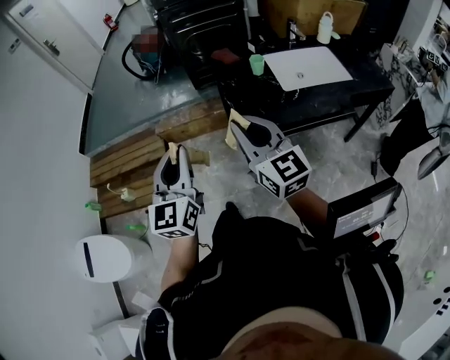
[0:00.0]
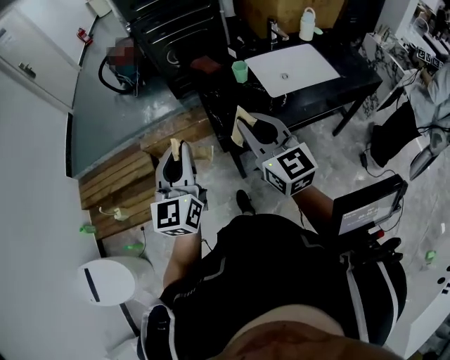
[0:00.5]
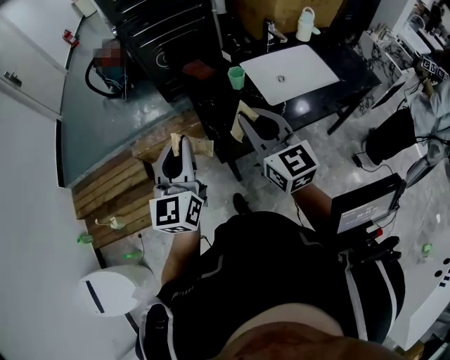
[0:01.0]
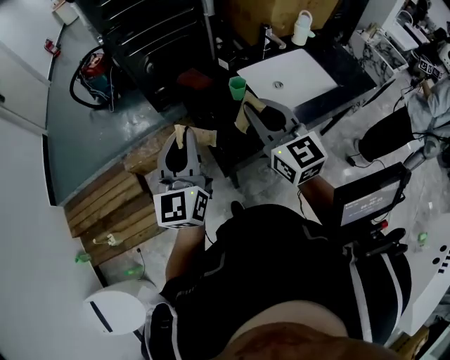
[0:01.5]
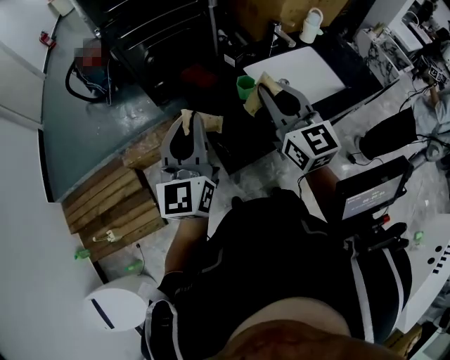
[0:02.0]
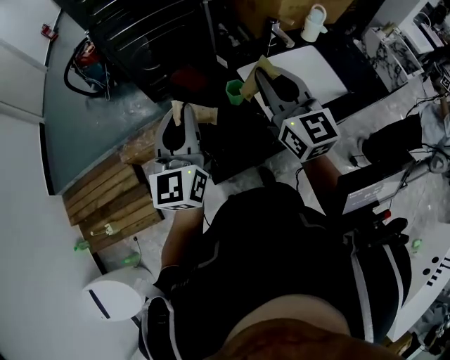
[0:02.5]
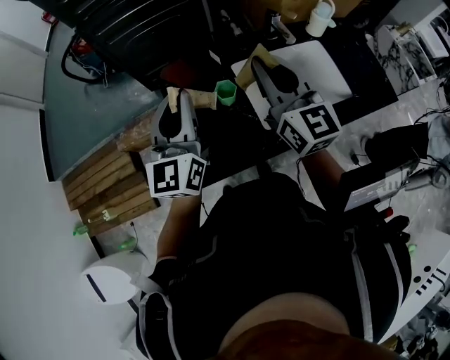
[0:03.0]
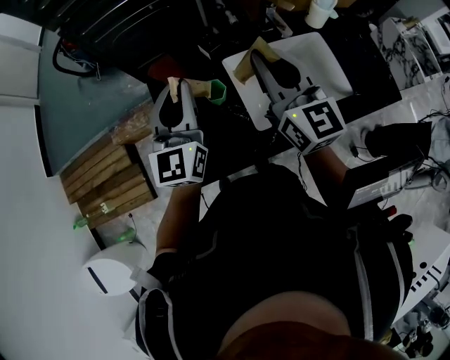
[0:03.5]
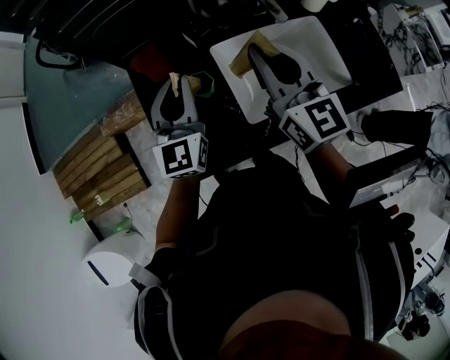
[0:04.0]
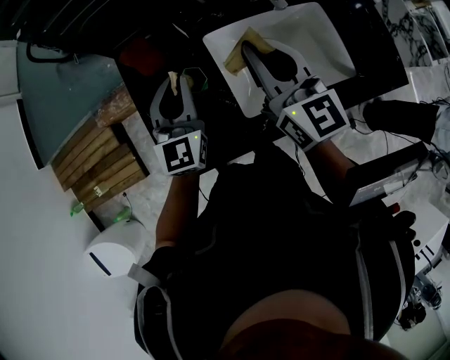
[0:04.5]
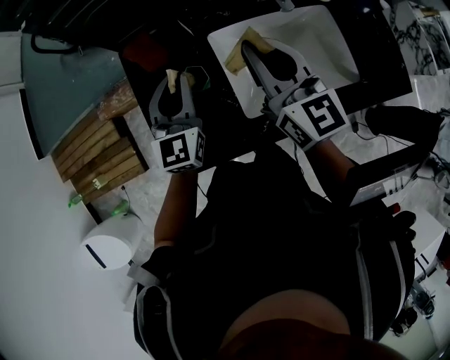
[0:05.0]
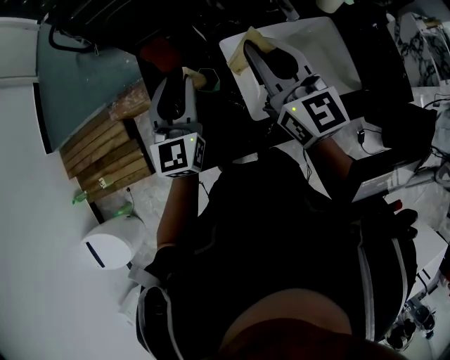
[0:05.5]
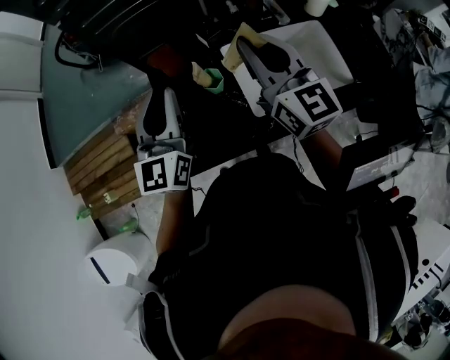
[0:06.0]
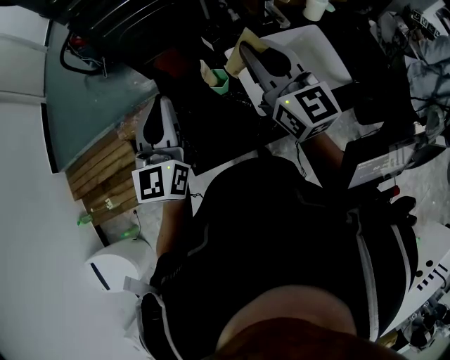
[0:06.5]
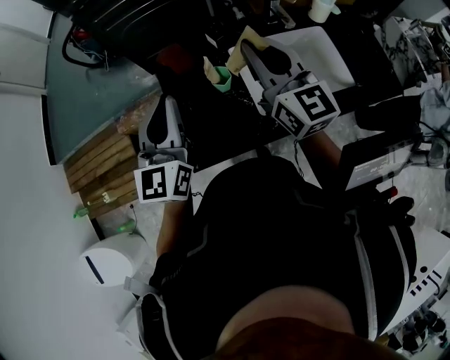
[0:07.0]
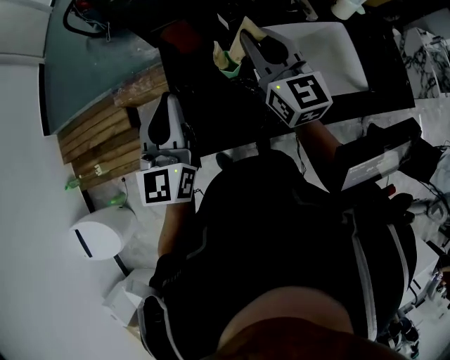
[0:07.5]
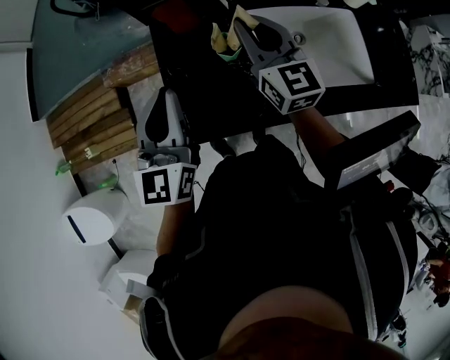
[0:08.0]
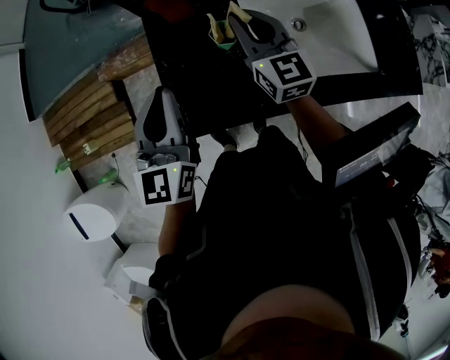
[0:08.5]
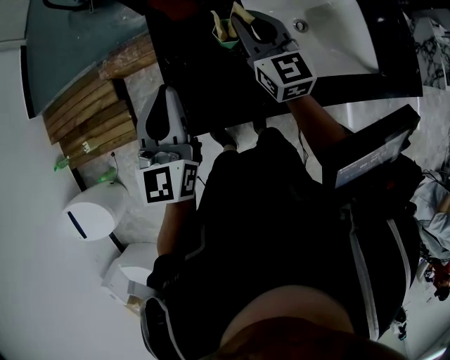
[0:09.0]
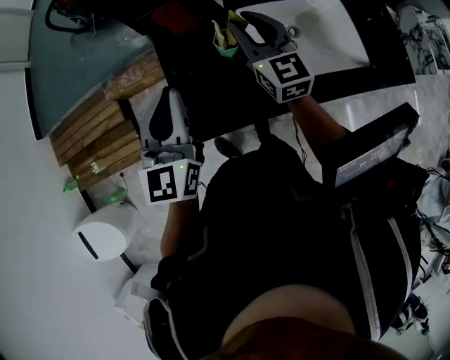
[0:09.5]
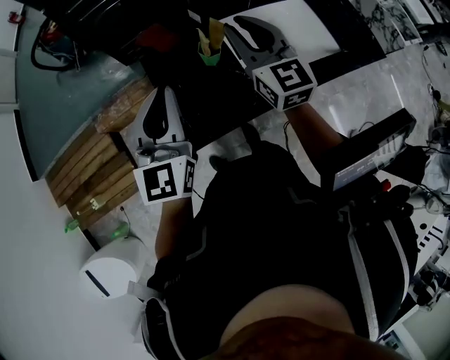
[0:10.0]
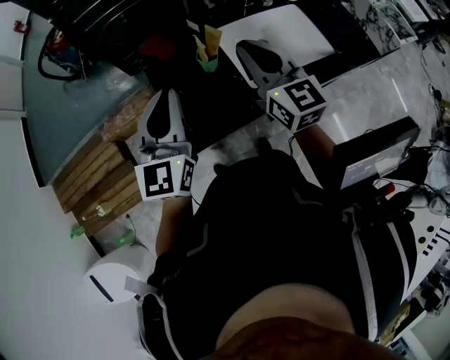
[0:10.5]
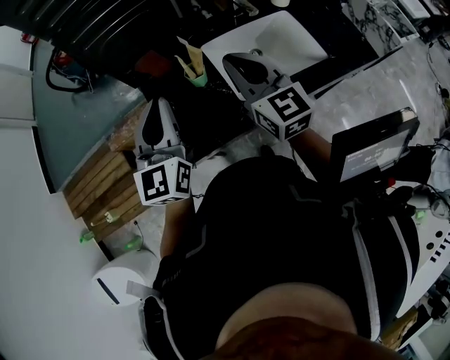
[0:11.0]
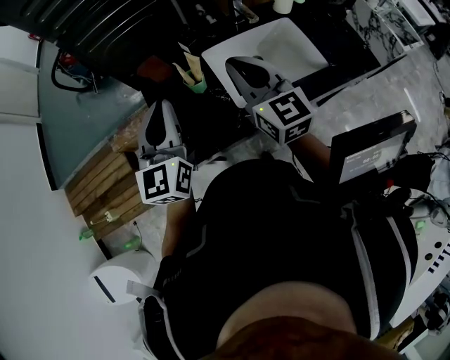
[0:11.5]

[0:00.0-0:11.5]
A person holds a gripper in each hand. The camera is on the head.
0:00.0 to 0:02.0: The grippers both shift forward by roughly 30 cm. The right gripper swivels approximately 20 degrees.
0:02.0 to 0:04.0: The left gripper travels forward, to the right and downward by approximately 25 cm, while the right gripper shifts roughly 20 cm to the right and forward.
0:04.0 to 0:06.0: The right gripper moves about 5 cm, while the left gripper heads upward, backward and to the left, covering about 10 cm.
0:06.0 to 0:07.5: The left gripper moves about 5 cm. The right gripper shifts by some 5 cm.
0:07.5 to 0:09.5: The right gripper travels downward by some 5 cm.
0:09.5 to 0:11.5: The right gripper moves backward, upward and to the right, some 15 cm; the left gripper travels to the right and upward by approximately 10 cm.

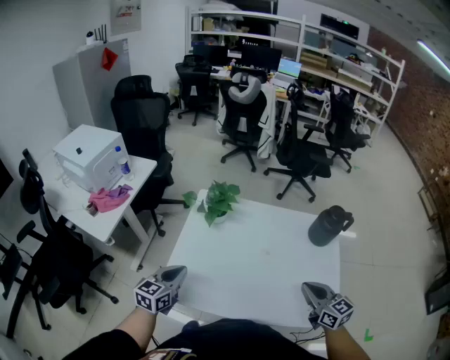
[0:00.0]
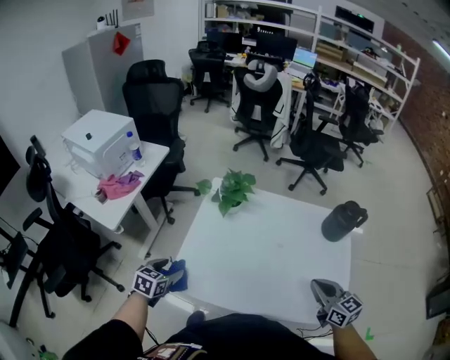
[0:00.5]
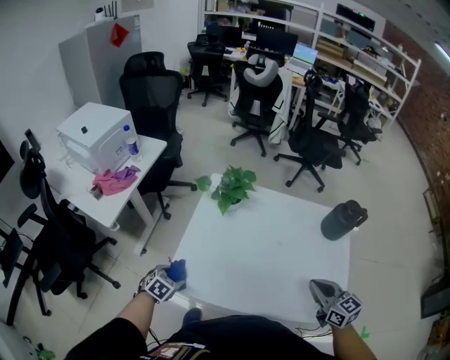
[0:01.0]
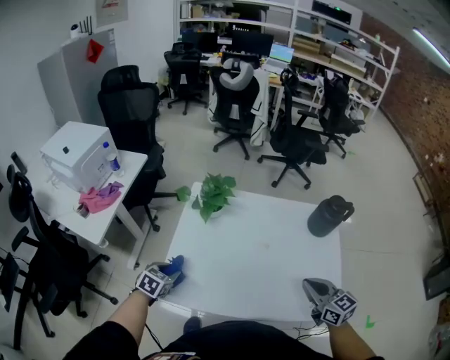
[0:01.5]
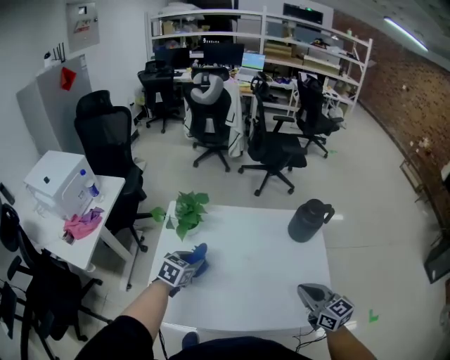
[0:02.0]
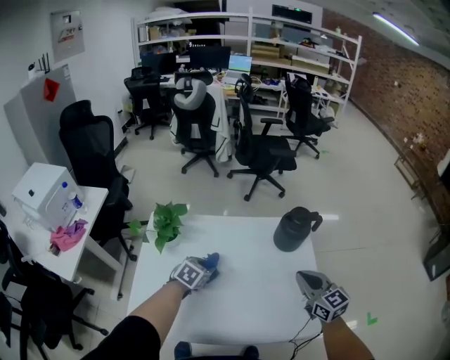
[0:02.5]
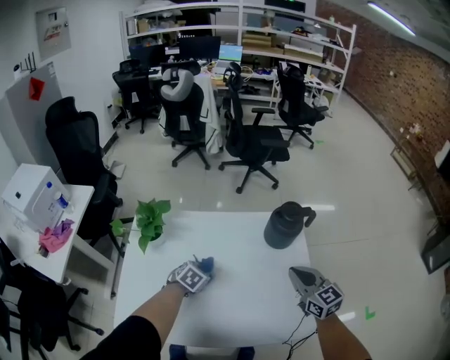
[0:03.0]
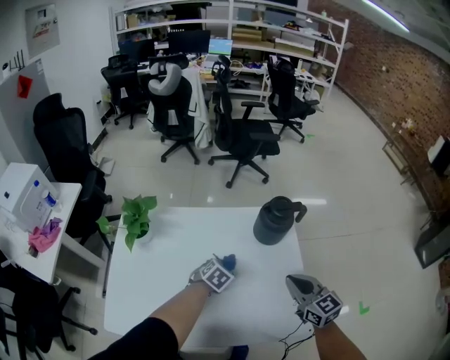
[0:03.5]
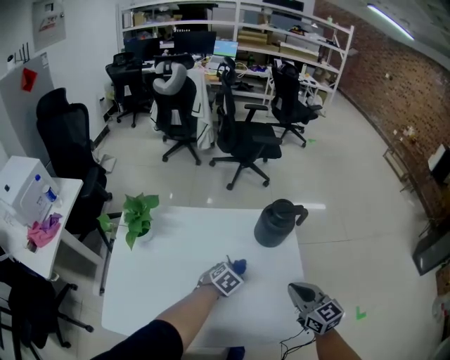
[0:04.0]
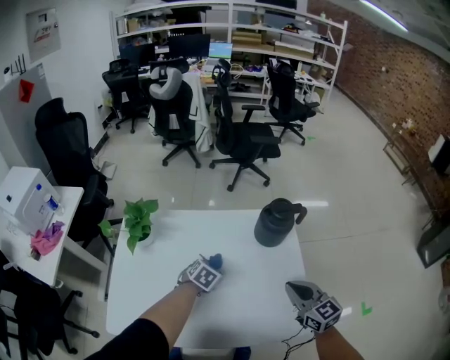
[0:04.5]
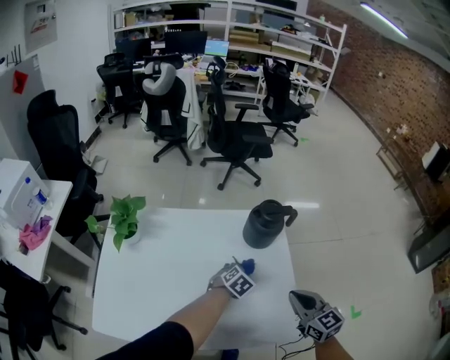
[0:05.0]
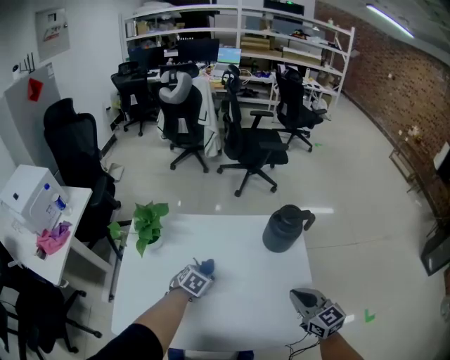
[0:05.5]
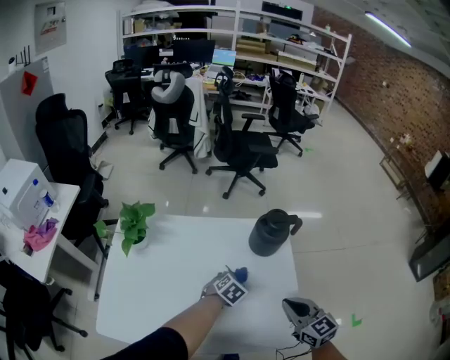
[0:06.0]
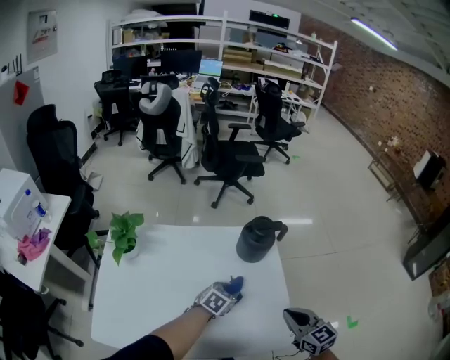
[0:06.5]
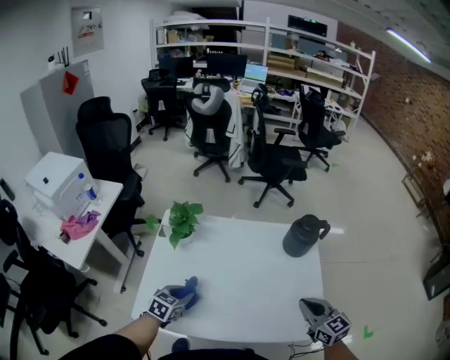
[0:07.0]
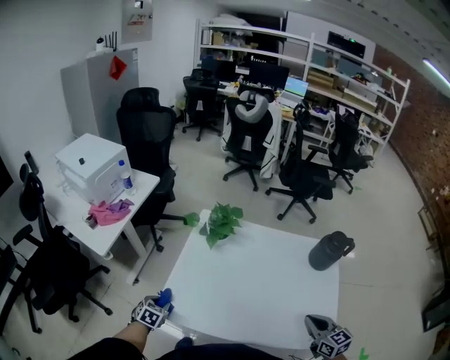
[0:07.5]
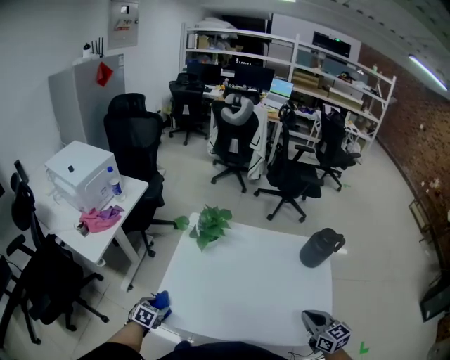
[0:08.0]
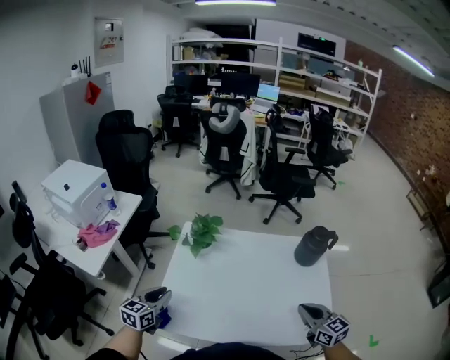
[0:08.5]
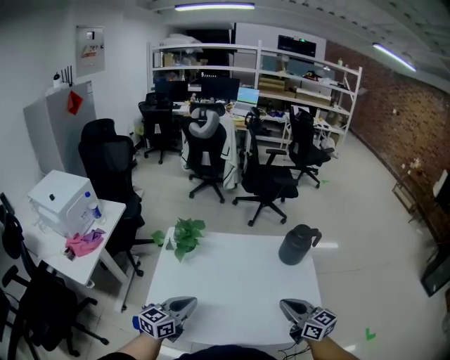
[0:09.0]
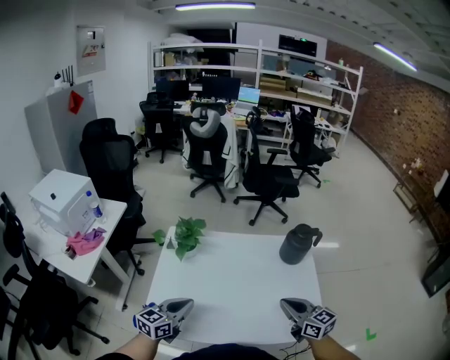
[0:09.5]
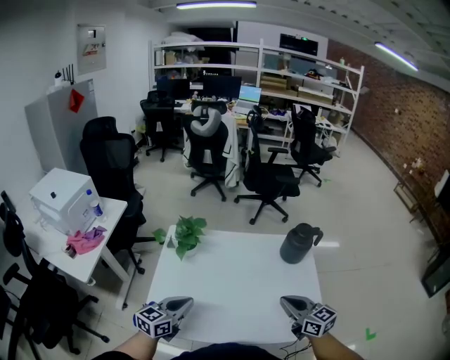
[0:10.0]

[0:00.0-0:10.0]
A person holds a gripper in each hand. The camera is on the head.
0:00.0 to 0:02.0: The left gripper moves forward and to the right, approximately 20 cm, changes its angle by approximately 30 degrees, and opens.
0:02.0 to 0:04.0: The right gripper heads to the right and forward, covering approximately 15 cm. Meanwhile the left gripper is displaced to the right by roughly 30 cm, and swivels approximately 30 degrees.
0:04.0 to 0:06.0: The left gripper swings left and right, approximately 25 cm each way, with 3 reversals.
0:06.0 to 0:08.0: The right gripper moves approximately 15 cm, while the left gripper goes upward and returns, some 10 cm each way, and changes its angle by some 40 degrees.
0:08.0 to 0:10.0: The left gripper goes some 30 cm upward and to the right, points its fingers about 40 degrees further upward, and closes up.

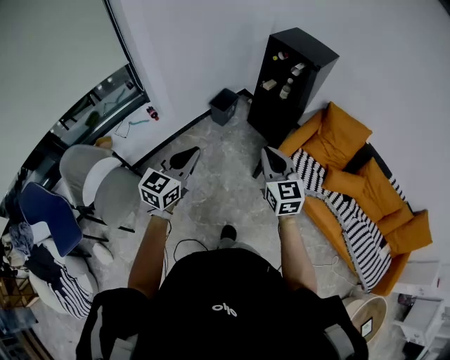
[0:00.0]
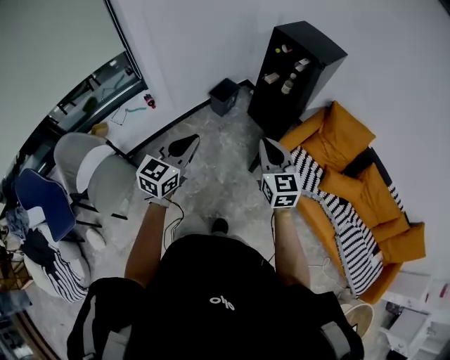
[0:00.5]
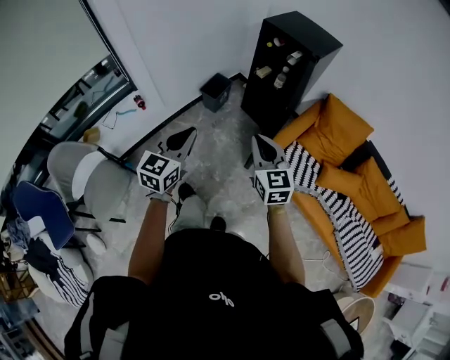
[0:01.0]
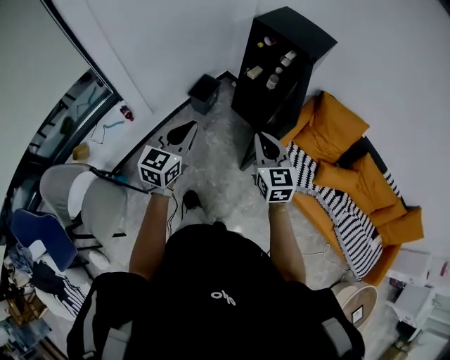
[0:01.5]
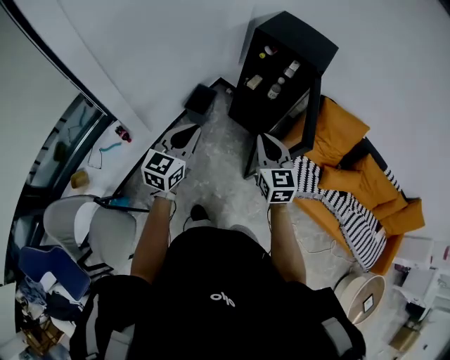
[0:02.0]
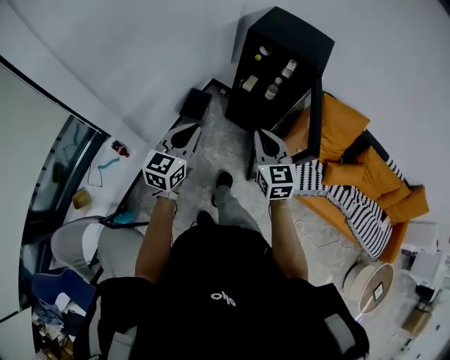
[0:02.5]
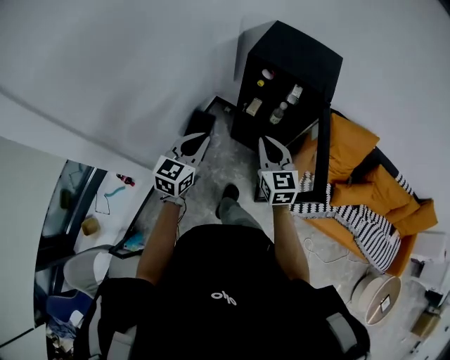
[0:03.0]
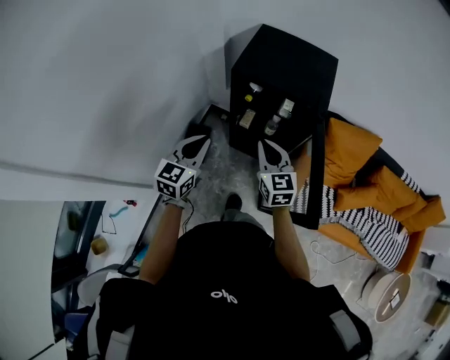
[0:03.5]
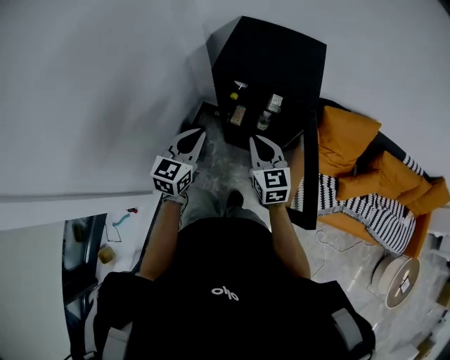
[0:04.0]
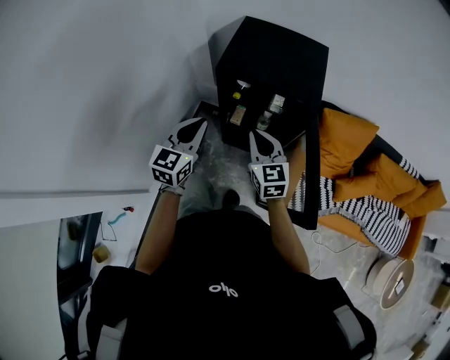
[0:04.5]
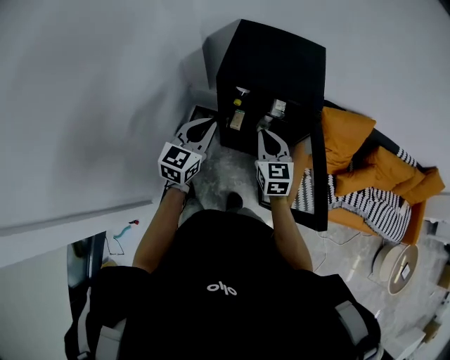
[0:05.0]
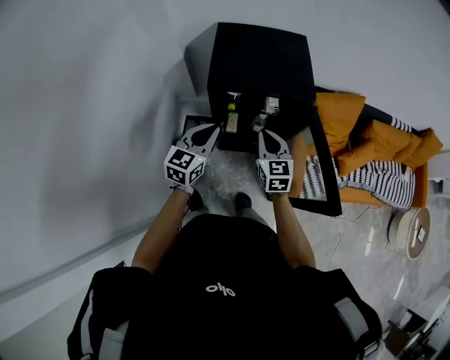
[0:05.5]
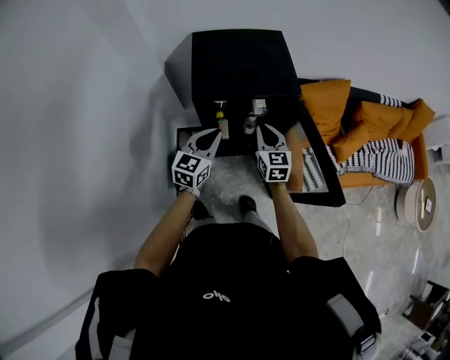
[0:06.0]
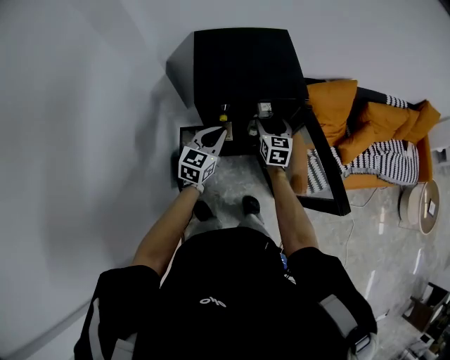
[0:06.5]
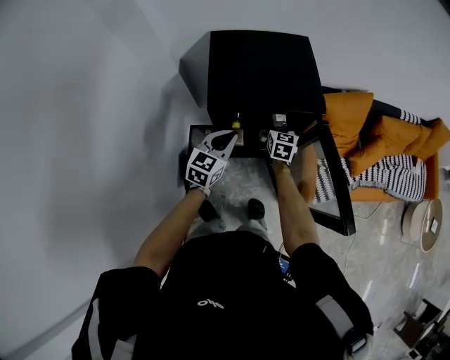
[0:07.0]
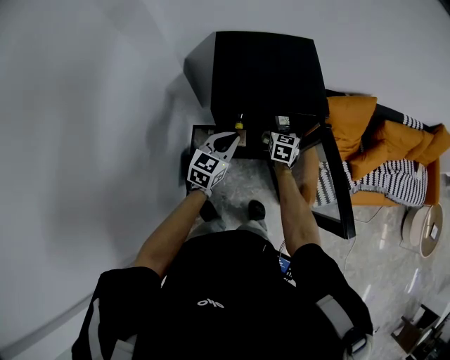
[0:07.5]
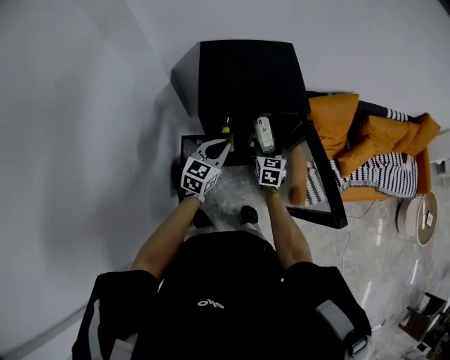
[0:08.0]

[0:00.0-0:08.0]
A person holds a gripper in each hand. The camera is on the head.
0:00.0 to 0:02.0: Both grippers travel together forward, about 30 cm.
0:02.0 to 0:04.0: Both grippers move forward, some 35 cm.
0:04.0 to 0:06.0: The right gripper ends up approximately 10 cm from where it was, and rotates approximately 30 degrees. Meanwhile the left gripper moves some 10 cm, and changes its angle by about 30 degrees.
0:06.0 to 0:08.0: The right gripper is displaced downward by about 10 cm, travels forward and back again, roughly 15 cm each way, and opens up.
